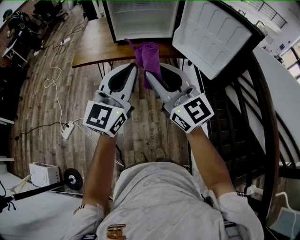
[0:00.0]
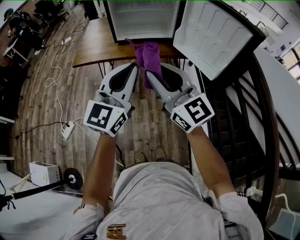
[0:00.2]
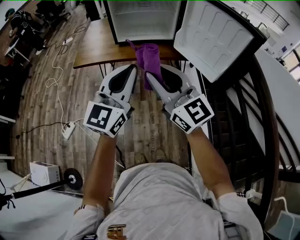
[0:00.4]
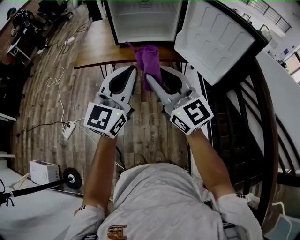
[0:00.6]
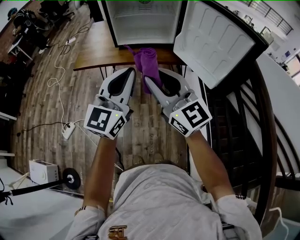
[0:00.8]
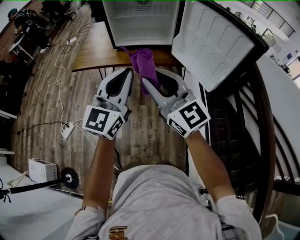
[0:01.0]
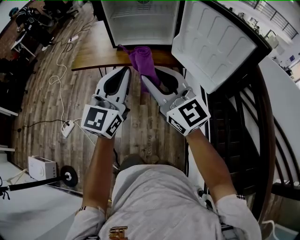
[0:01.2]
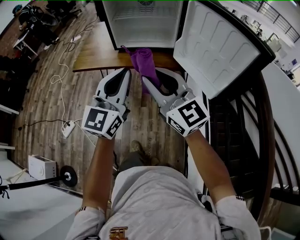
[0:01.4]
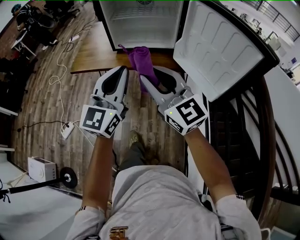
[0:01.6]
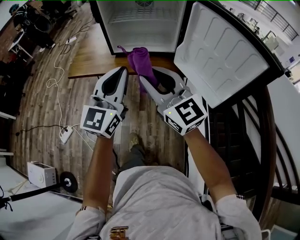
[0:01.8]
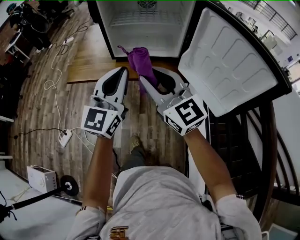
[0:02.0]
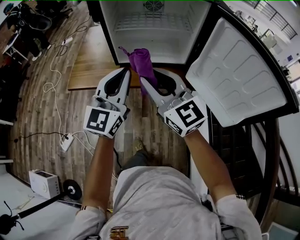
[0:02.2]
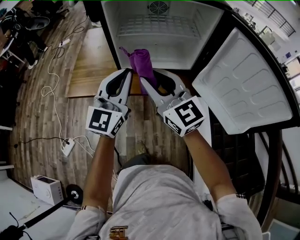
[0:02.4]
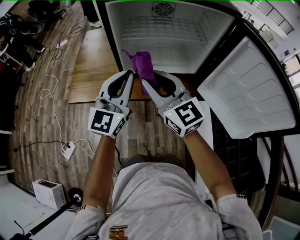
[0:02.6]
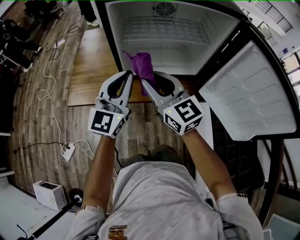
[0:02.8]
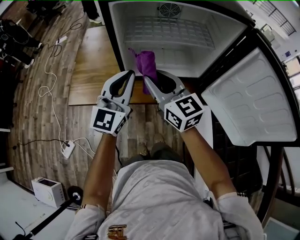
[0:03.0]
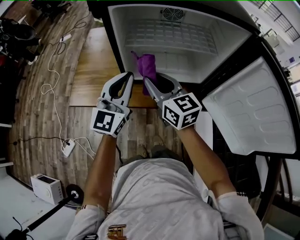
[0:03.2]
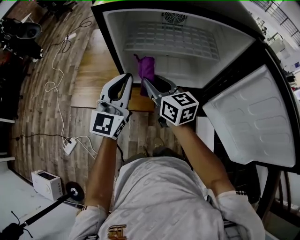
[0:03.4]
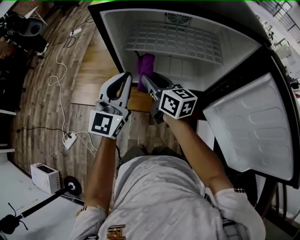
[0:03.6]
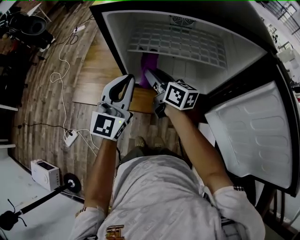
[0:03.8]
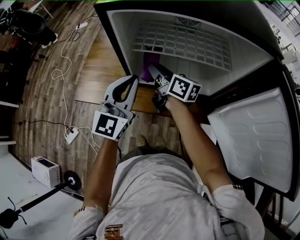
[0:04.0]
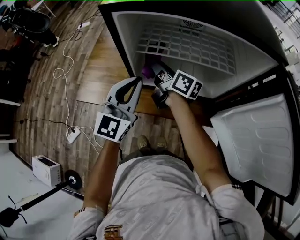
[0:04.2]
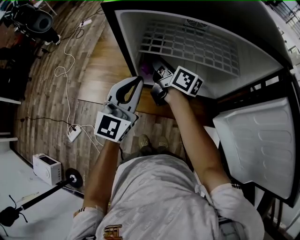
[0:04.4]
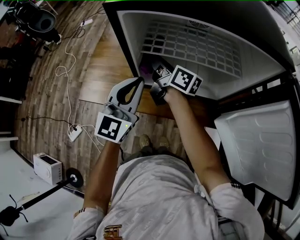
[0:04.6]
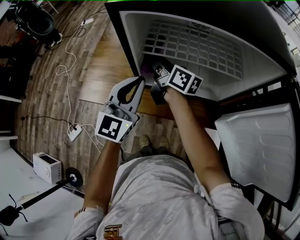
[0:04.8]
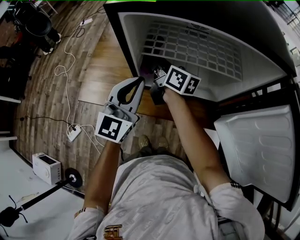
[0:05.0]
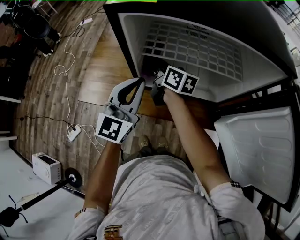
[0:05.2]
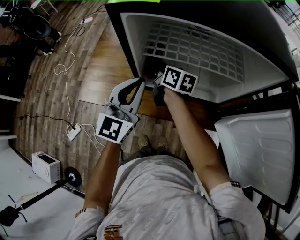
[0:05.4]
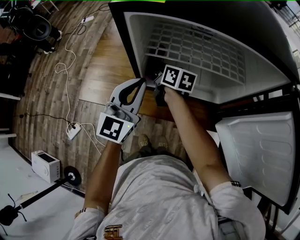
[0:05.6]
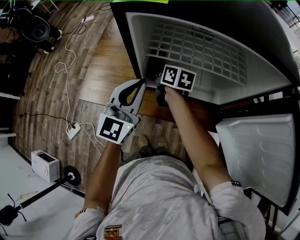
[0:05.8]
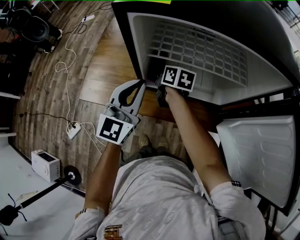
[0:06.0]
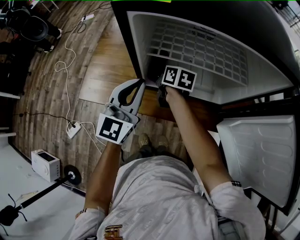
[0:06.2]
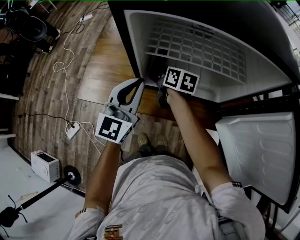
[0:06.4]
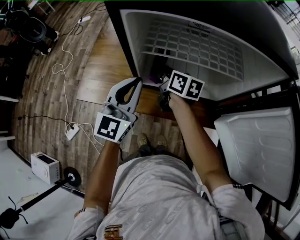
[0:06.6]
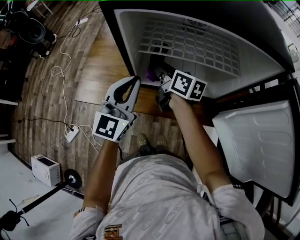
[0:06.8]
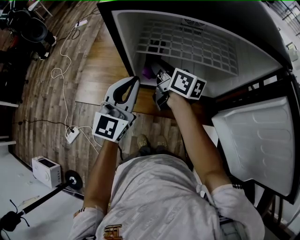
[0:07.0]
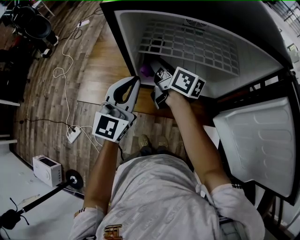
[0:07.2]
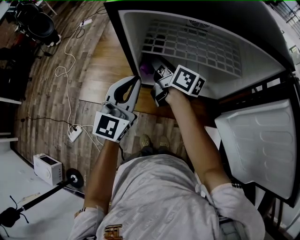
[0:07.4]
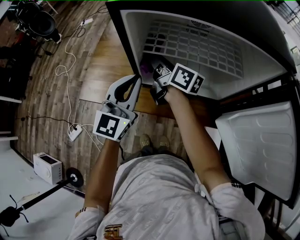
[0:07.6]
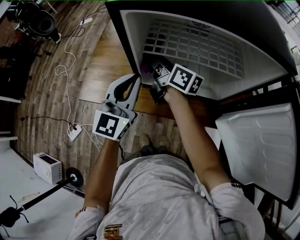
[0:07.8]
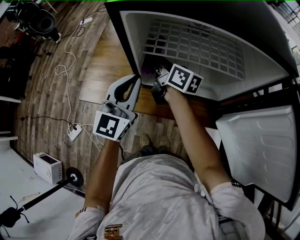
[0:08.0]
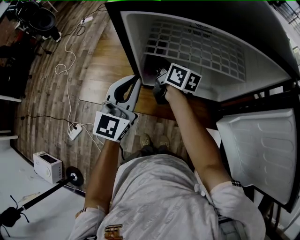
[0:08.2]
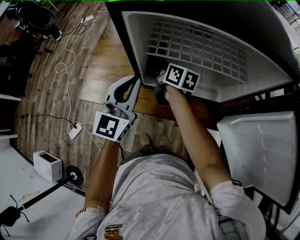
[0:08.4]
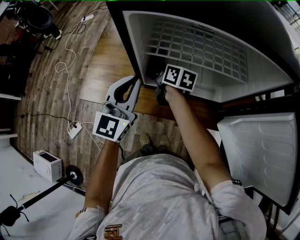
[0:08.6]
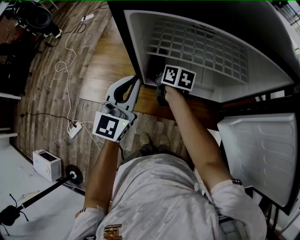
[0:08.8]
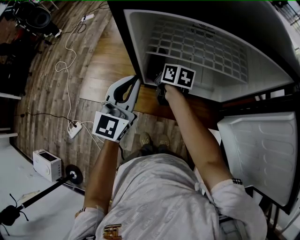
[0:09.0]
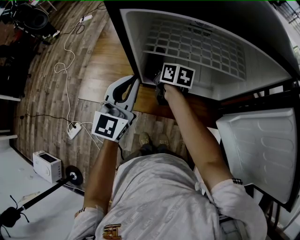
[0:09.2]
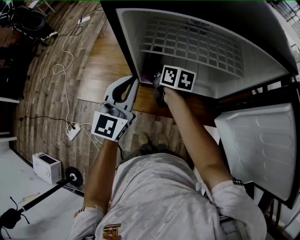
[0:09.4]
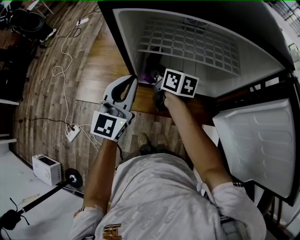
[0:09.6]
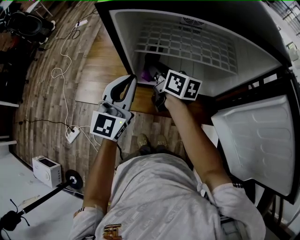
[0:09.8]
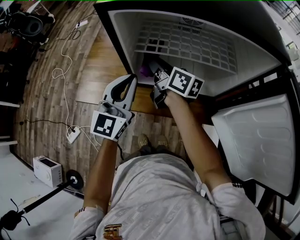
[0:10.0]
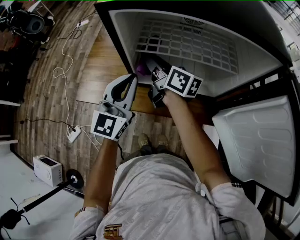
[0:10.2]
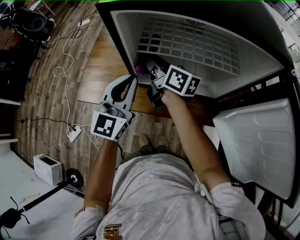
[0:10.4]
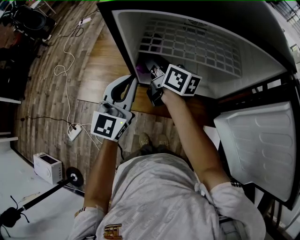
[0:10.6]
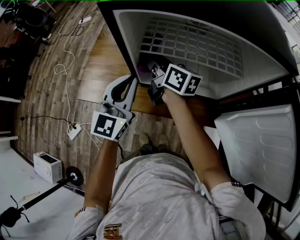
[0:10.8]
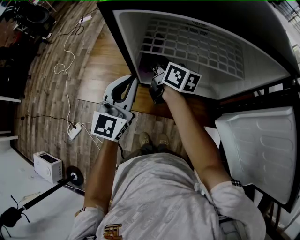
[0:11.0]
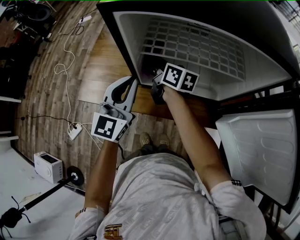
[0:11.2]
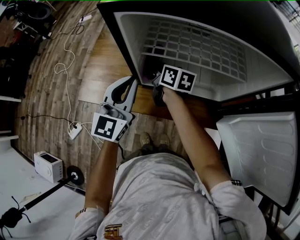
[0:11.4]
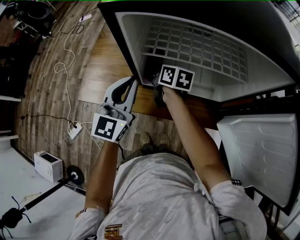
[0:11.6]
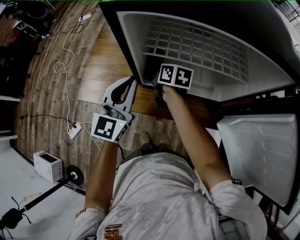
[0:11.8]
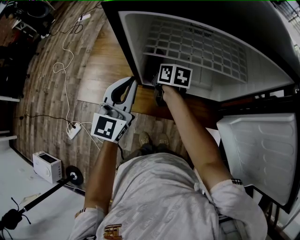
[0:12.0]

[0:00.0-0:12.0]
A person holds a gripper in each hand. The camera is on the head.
0:00.0 to 0:01.6: The left gripper heads forward, covering about 10 cm; the right gripper is displaced forward and to the right by about 10 cm.
0:01.6 to 0:03.0: The two grippers go approximately 30 cm forward.
0:03.0 to 0:04.4: The right gripper goes approximately 20 cm forward, and rotates around the line of its fingers by about 50 degrees, clockwise from behind, while the left gripper goes some 5 cm forward.
0:04.4 to 0:06.0: The right gripper heads downward, covering some 10 cm, and points its fingers about 30 degrees further downward.
0:06.0 to 0:07.6: The right gripper goes some 10 cm upward, and angles its fingers upward, by about 30 degrees.
0:07.6 to 0:09.0: The right gripper moves downward, about 15 cm, and tips its fingers downward by roughly 30 degrees.
0:09.0 to 0:10.4: The right gripper goes about 15 cm upward, and changes its angle by about 30 degrees.
0:10.4 to 0:12.0: The right gripper travels downward by approximately 15 cm, and tilts its fingers roughly 30 degrees downward.

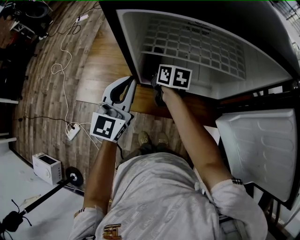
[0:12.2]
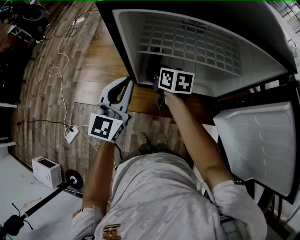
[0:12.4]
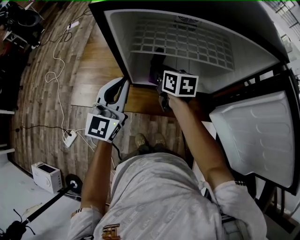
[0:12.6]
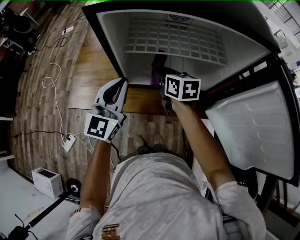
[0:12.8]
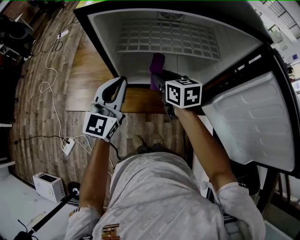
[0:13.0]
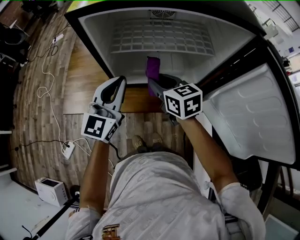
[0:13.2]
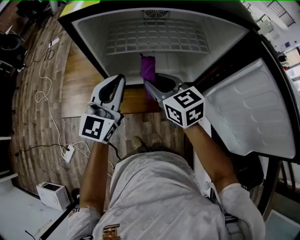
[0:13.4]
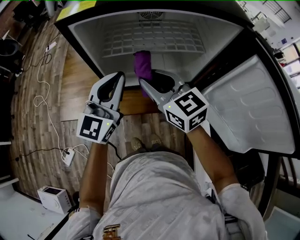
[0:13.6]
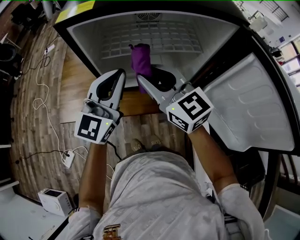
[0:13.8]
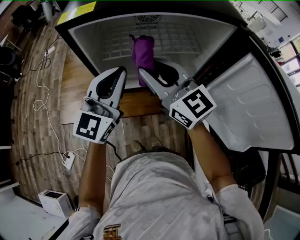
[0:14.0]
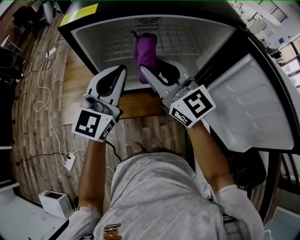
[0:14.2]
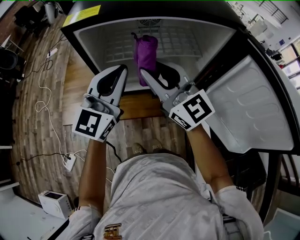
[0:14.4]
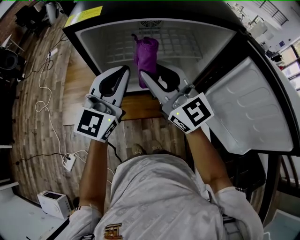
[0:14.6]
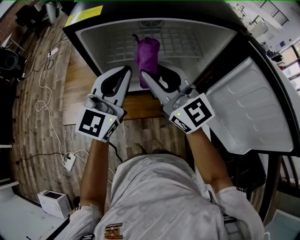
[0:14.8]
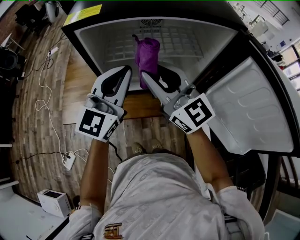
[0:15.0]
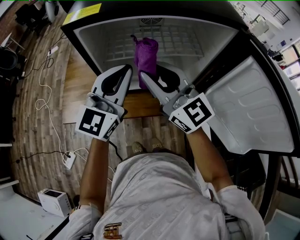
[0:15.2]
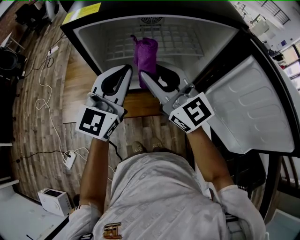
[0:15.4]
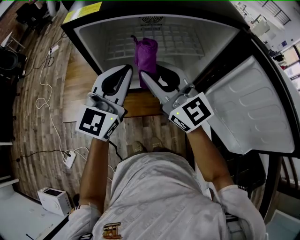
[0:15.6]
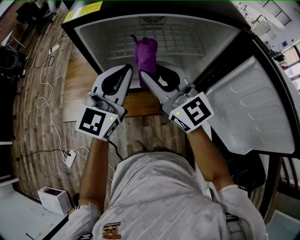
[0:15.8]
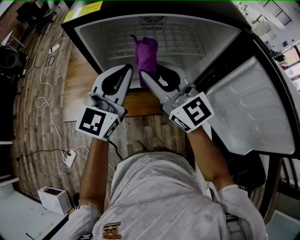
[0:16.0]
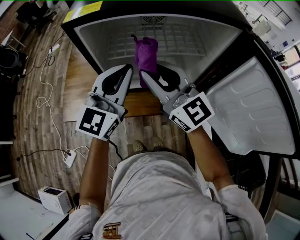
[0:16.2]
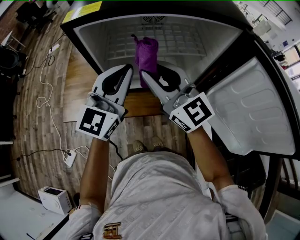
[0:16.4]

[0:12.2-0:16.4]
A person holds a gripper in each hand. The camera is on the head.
0:12.2 to 0:13.6: The right gripper shifts roughly 25 cm upward, backward and to the right, and rotates some 40 degrees. Meanwhile the left gripper heads to the right and upward, covering about 10 cm.
0:13.6 to 0:15.0: The right gripper moves upward, some 10 cm, and rotates some 30 degrees.
0:15.0 to 0:16.4: Neither gripper changes place.

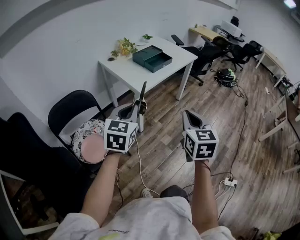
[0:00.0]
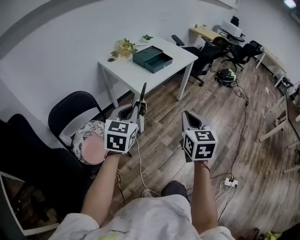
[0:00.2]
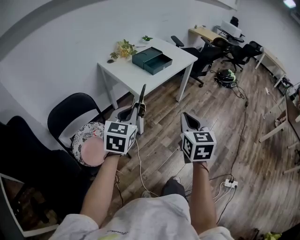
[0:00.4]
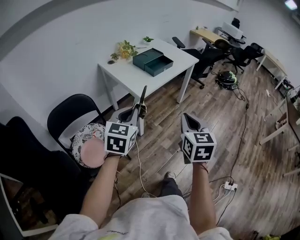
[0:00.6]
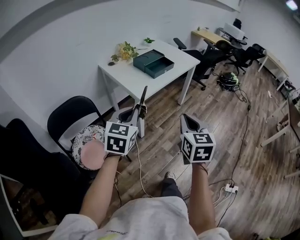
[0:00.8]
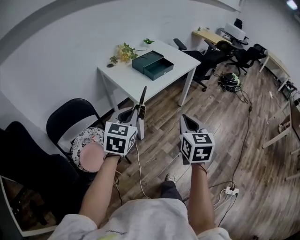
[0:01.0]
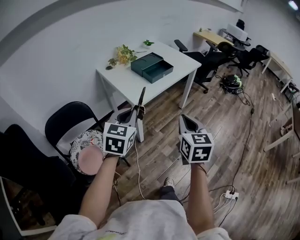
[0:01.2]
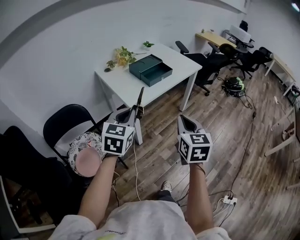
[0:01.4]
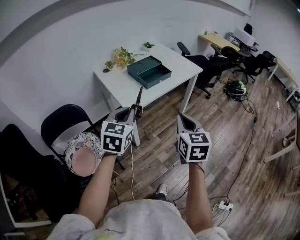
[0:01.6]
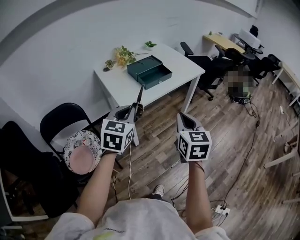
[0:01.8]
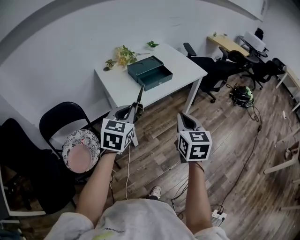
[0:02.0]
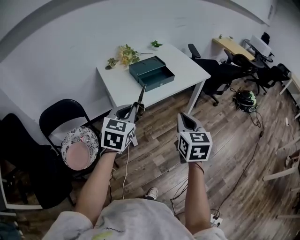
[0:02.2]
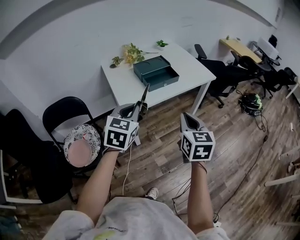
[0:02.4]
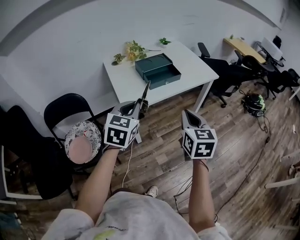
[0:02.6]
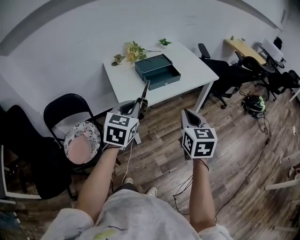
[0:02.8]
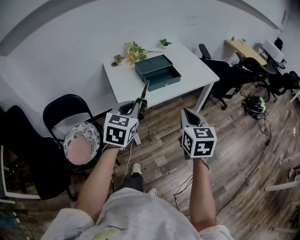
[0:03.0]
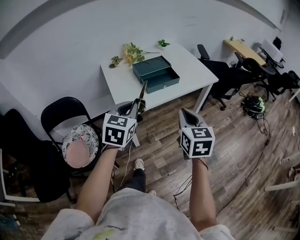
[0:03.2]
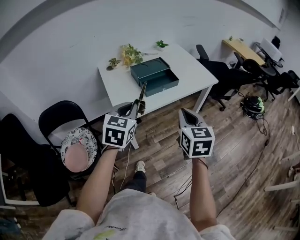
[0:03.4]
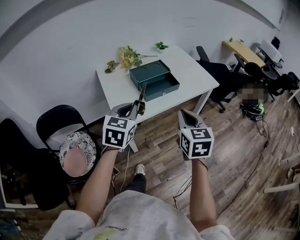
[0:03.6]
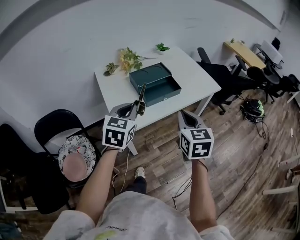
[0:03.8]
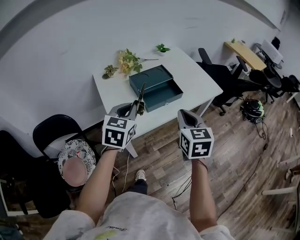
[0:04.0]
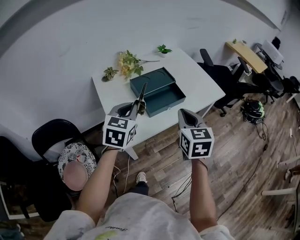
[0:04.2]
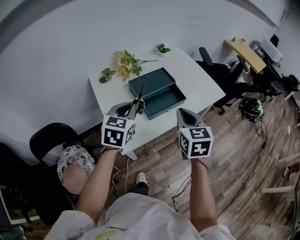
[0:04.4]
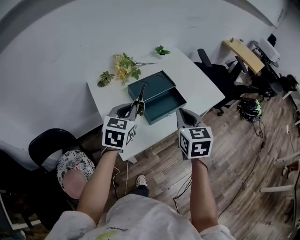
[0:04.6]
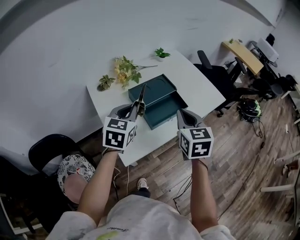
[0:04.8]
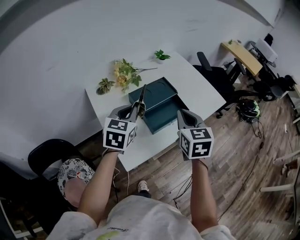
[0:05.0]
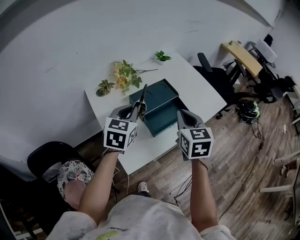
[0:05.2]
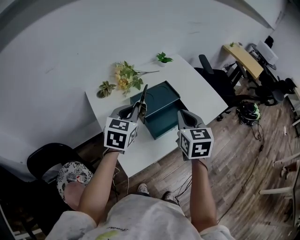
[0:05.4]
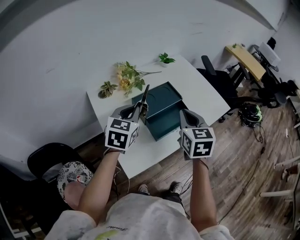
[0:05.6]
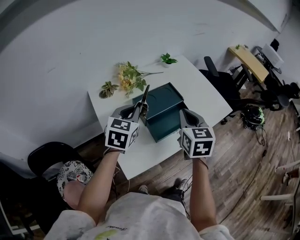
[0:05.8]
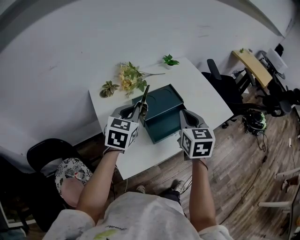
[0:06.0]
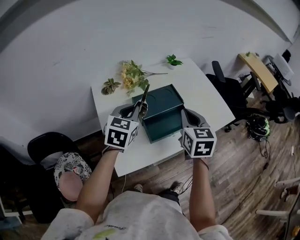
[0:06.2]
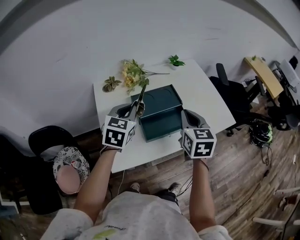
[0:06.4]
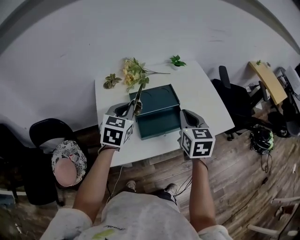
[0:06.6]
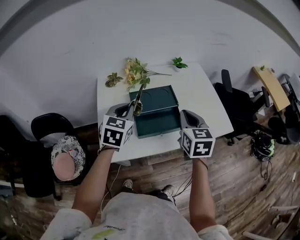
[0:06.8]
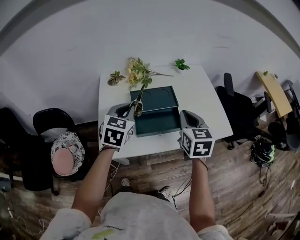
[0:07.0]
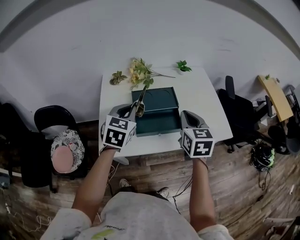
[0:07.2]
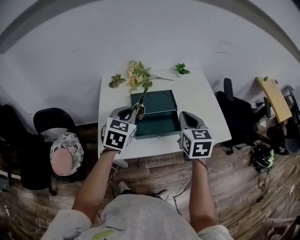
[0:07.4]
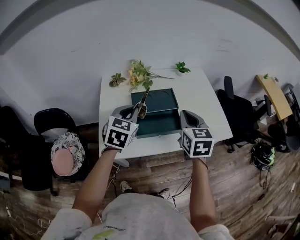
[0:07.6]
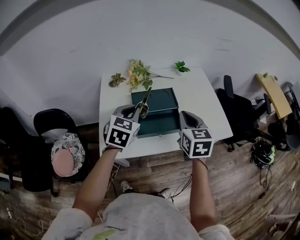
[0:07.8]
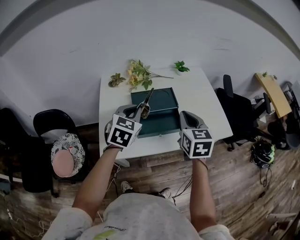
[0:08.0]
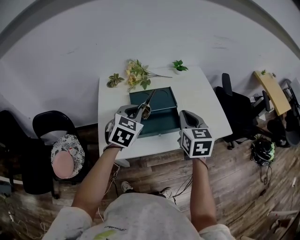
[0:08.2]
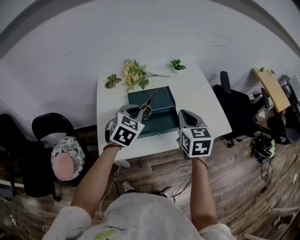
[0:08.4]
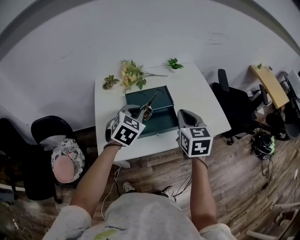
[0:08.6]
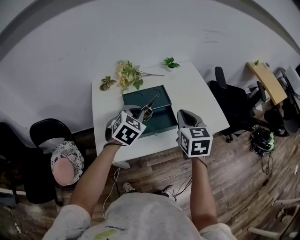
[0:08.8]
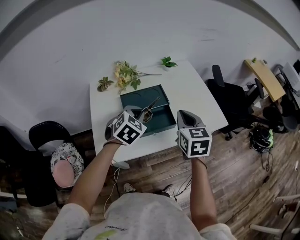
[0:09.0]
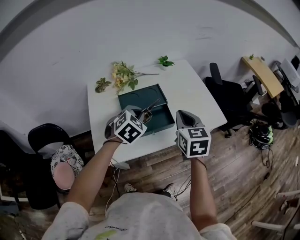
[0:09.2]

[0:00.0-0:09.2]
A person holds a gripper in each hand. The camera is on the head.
0:00.0 to 0:01.6: The left gripper travels forward and to the right by approximately 15 cm. The right gripper heads forward, covering about 20 cm.
0:01.6 to 0:03.0: The two grippers go roughly 15 cm forward and to the right.
0:03.0 to 0:04.6: The grippers both shift forward by some 25 cm.
0:04.6 to 0:06.2: Both grippers travel together forward, roughly 10 cm.
0:06.2 to 0:07.6: The left gripper shifts by approximately 5 cm; the right gripper moves to the right, about 5 cm.
0:07.6 to 0:09.2: The left gripper travels to the right and downward by roughly 10 cm, and swivels about 30 degrees.
